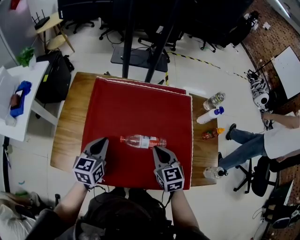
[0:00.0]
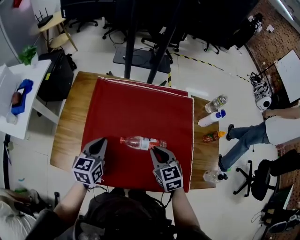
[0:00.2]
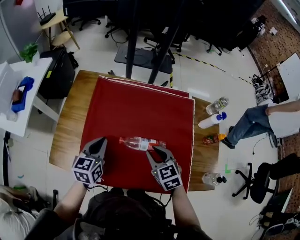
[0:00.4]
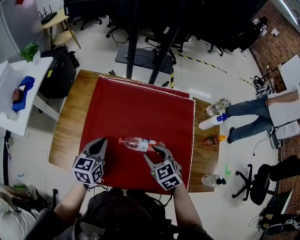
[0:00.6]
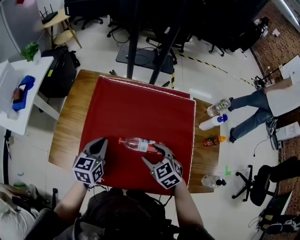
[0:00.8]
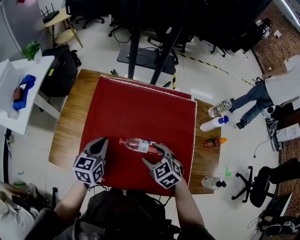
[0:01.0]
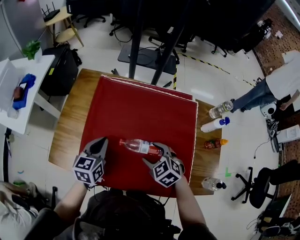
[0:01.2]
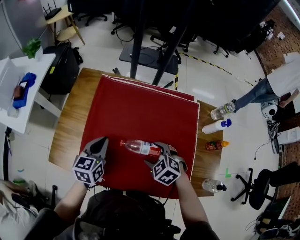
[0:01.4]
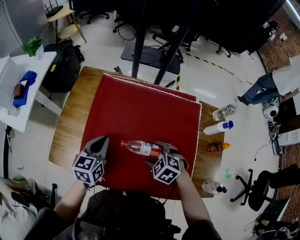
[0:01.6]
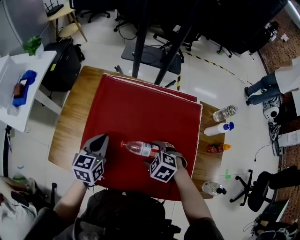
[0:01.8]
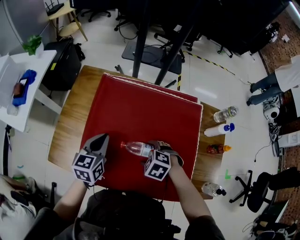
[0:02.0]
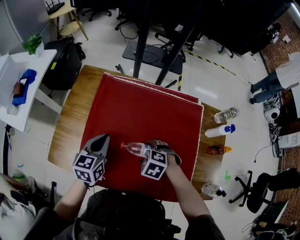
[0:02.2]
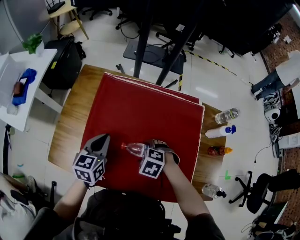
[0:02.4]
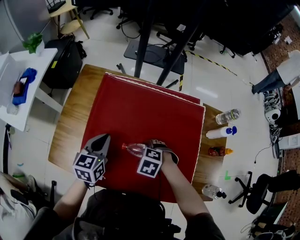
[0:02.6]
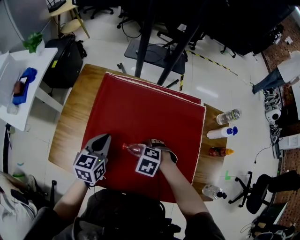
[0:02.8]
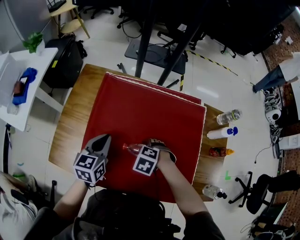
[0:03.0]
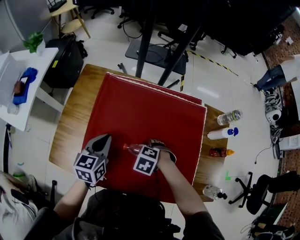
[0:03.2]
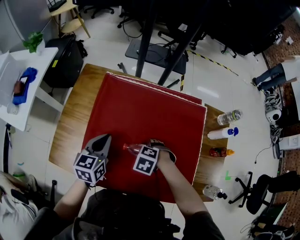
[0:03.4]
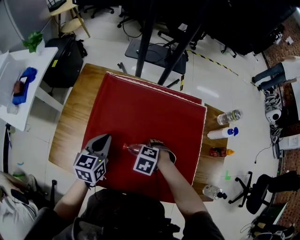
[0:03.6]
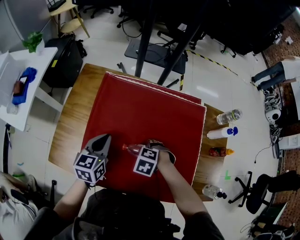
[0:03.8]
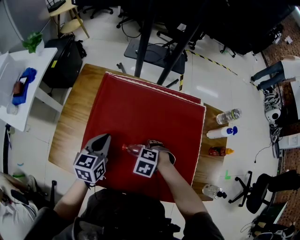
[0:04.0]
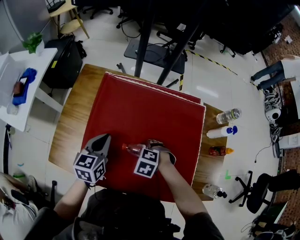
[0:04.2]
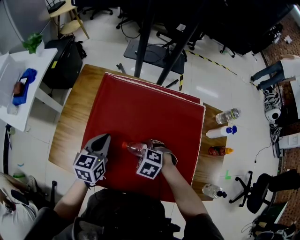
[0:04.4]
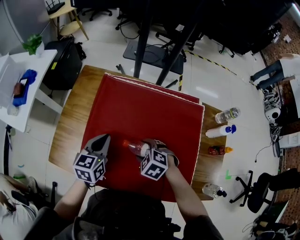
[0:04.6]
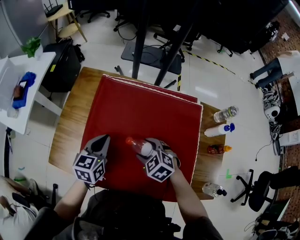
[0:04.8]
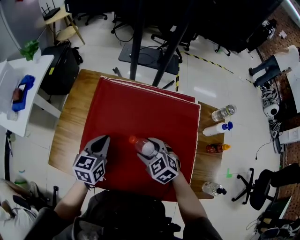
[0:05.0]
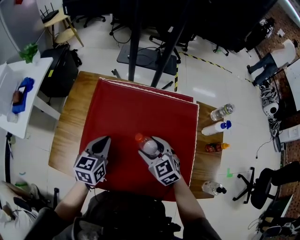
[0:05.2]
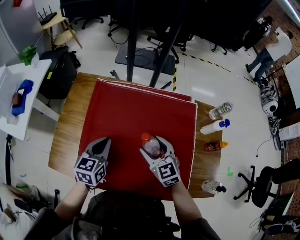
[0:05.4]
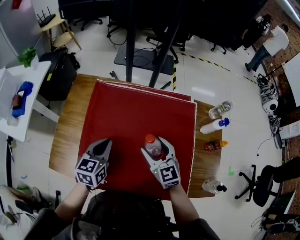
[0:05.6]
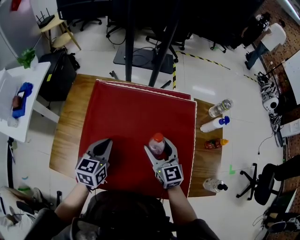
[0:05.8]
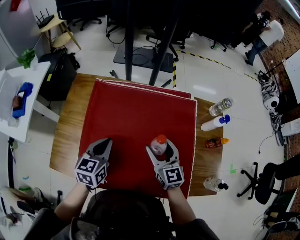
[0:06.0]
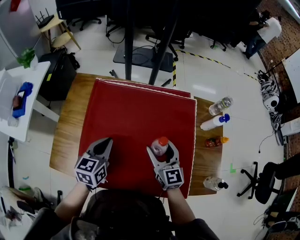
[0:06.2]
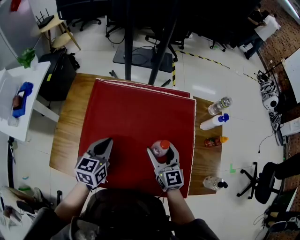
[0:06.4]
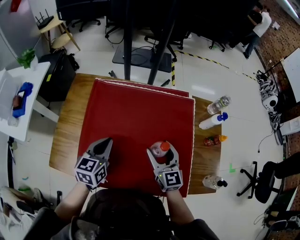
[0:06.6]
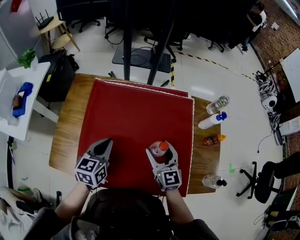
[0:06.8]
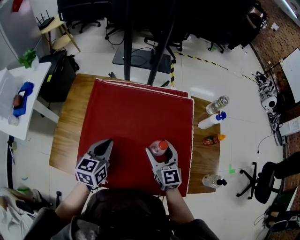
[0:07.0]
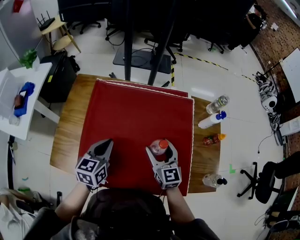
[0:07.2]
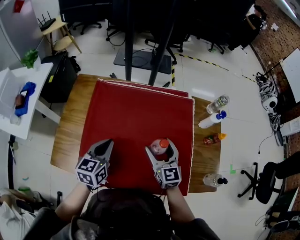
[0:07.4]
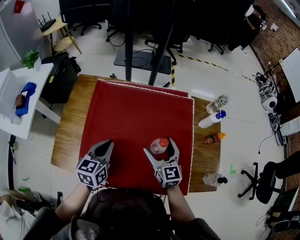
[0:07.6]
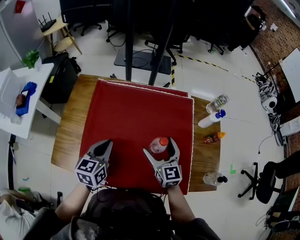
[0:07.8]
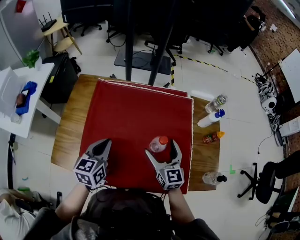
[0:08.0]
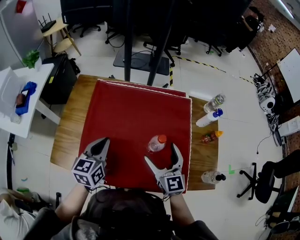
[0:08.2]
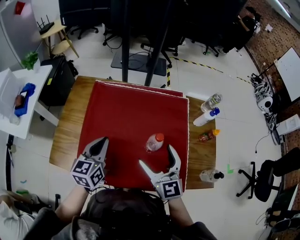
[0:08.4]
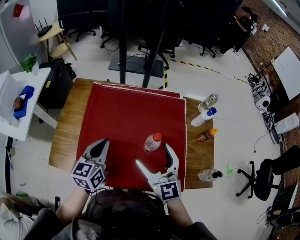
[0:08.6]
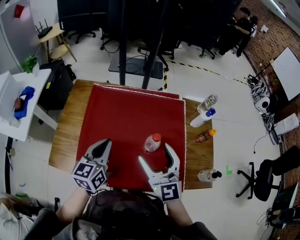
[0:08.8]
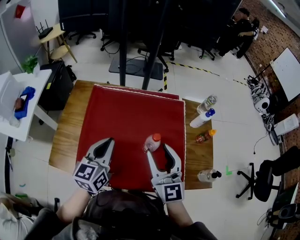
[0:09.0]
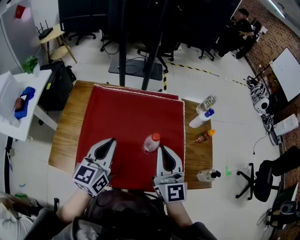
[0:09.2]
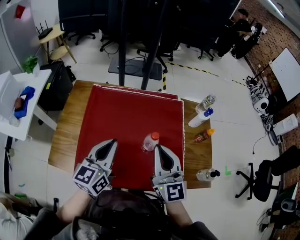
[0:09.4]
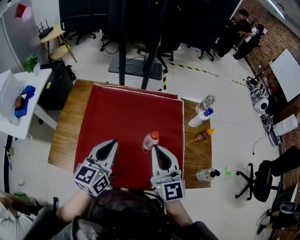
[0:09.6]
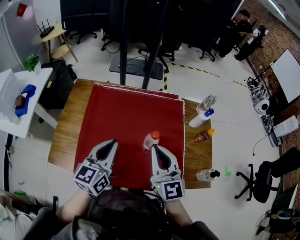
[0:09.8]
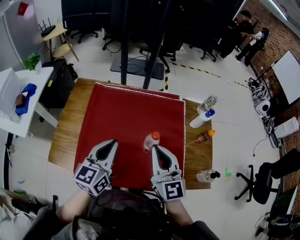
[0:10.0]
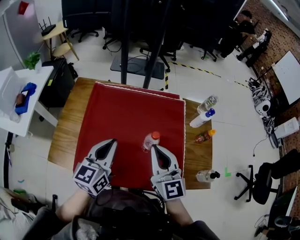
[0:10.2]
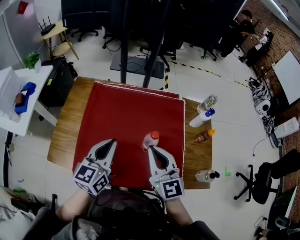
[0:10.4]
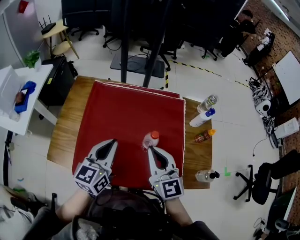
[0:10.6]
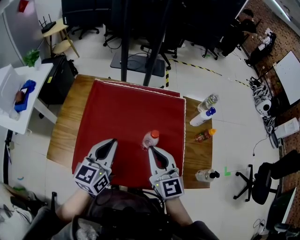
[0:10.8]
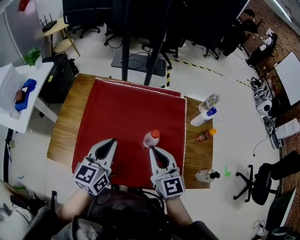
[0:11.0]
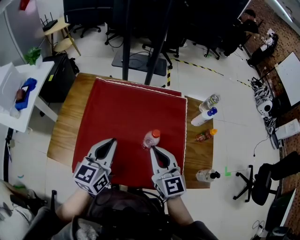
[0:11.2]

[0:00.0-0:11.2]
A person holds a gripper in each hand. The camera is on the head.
0:00.0 to 0:01.6: The right gripper travels downward by approximately 10 cm, angles its fingers downward, by some 30 degrees, and opens up.
0:01.6 to 0:03.2: The right gripper is displaced downward by roughly 5 cm, and changes its angle by some 20 degrees.
0:03.2 to 0:04.8: The right gripper goes some 5 cm upward, and turns by about 30 degrees.
0:04.8 to 0:06.4: The right gripper is displaced to the right and upward by some 15 cm, and points its fingers some 40 degrees further upward. The left gripper shifts by approximately 5 cm.
0:06.4 to 0:08.0: The left gripper is displaced backward by roughly 5 cm; the right gripper opens up.
0:08.0 to 0:09.6: The right gripper shifts some 15 cm upward and backward, and closes. The left gripper moves upward, to the right and backward, approximately 15 cm.
0:09.6 to 0:11.2: The right gripper is displaced downward by approximately 5 cm.

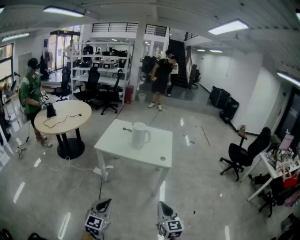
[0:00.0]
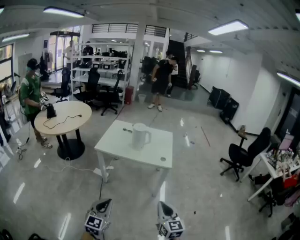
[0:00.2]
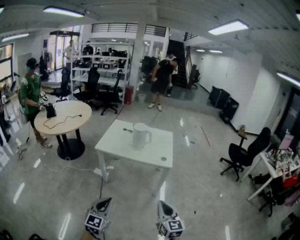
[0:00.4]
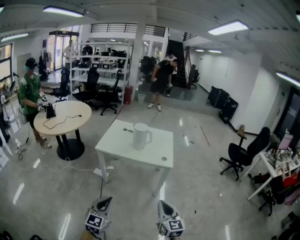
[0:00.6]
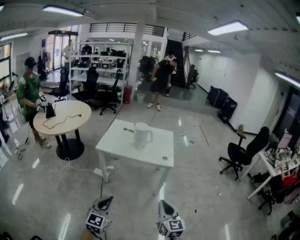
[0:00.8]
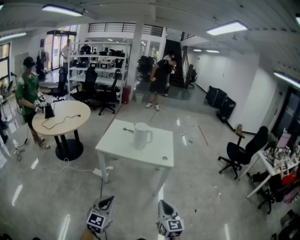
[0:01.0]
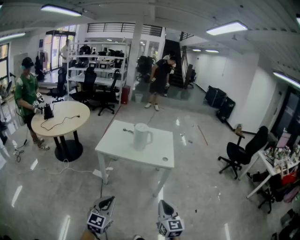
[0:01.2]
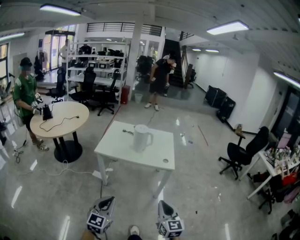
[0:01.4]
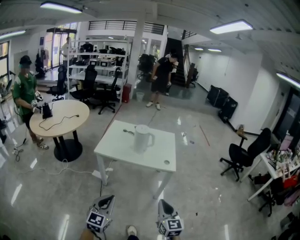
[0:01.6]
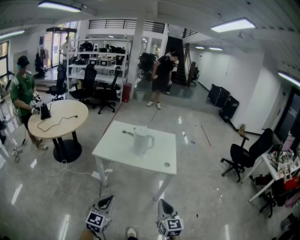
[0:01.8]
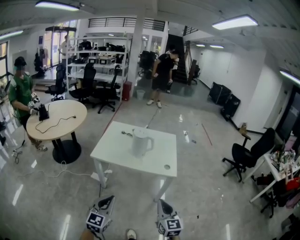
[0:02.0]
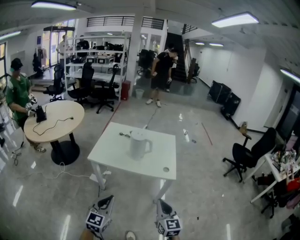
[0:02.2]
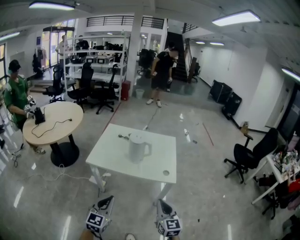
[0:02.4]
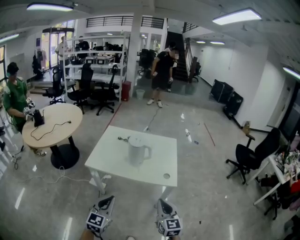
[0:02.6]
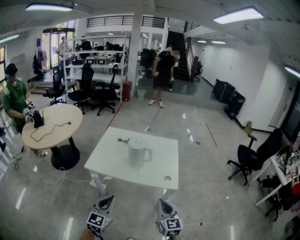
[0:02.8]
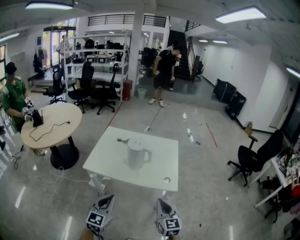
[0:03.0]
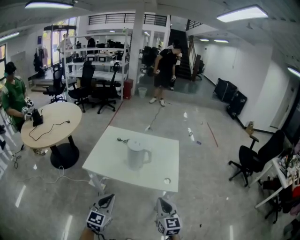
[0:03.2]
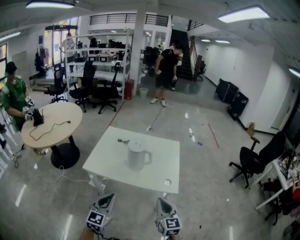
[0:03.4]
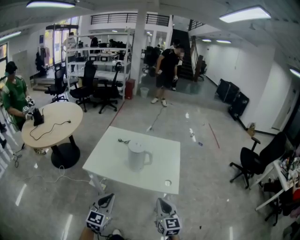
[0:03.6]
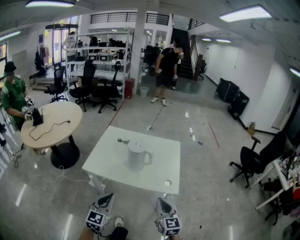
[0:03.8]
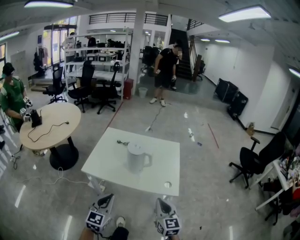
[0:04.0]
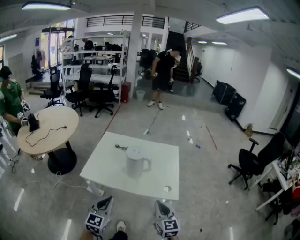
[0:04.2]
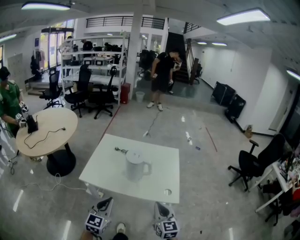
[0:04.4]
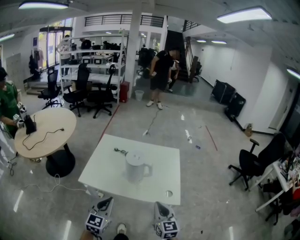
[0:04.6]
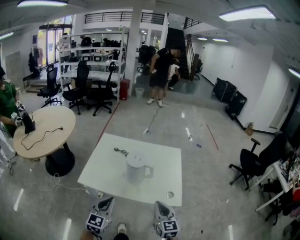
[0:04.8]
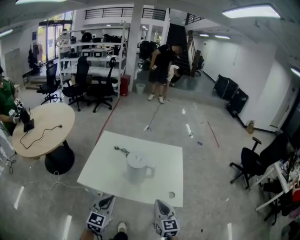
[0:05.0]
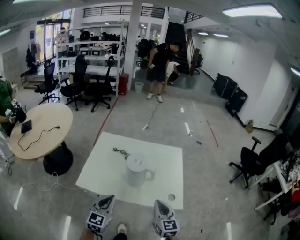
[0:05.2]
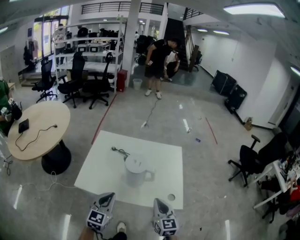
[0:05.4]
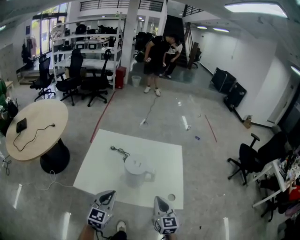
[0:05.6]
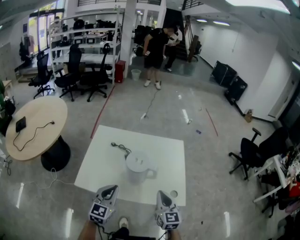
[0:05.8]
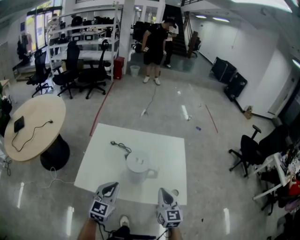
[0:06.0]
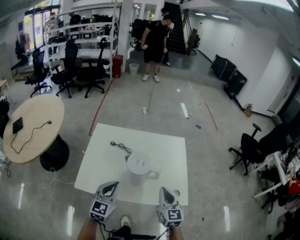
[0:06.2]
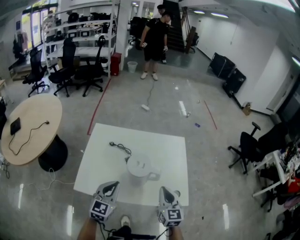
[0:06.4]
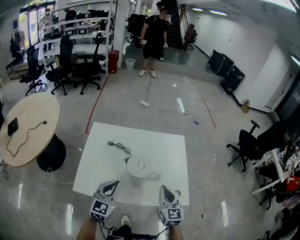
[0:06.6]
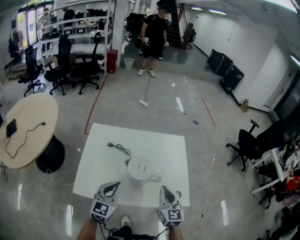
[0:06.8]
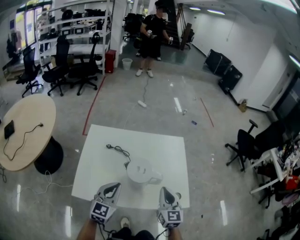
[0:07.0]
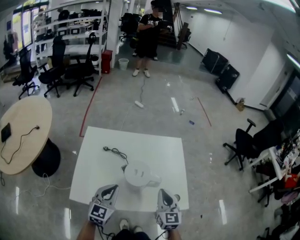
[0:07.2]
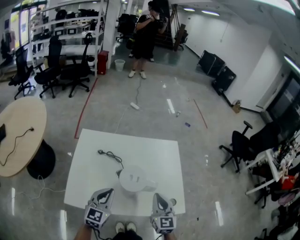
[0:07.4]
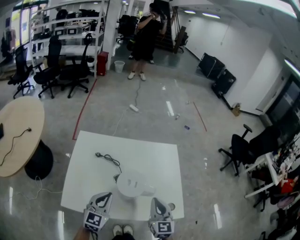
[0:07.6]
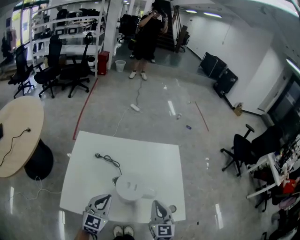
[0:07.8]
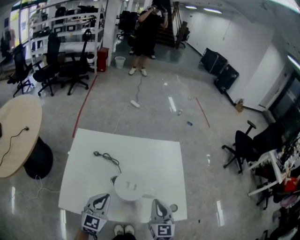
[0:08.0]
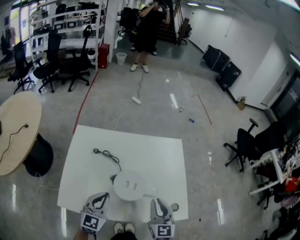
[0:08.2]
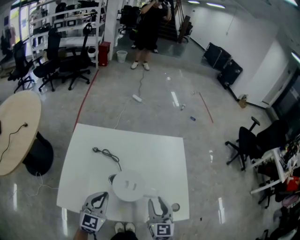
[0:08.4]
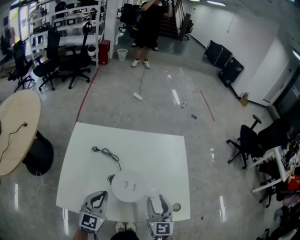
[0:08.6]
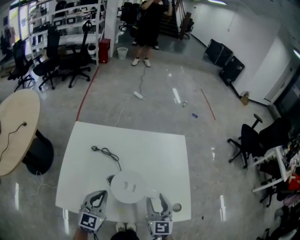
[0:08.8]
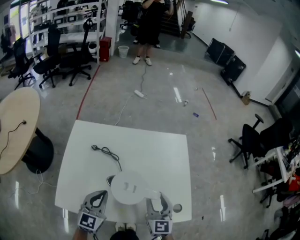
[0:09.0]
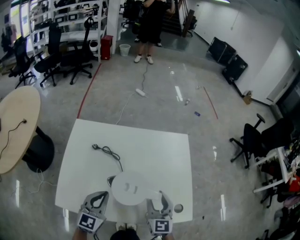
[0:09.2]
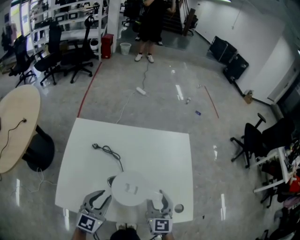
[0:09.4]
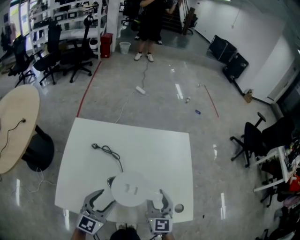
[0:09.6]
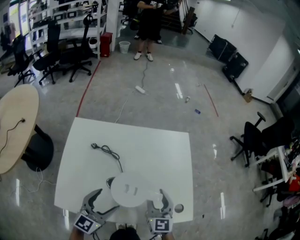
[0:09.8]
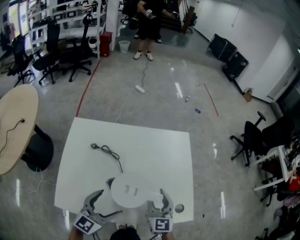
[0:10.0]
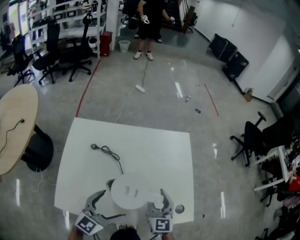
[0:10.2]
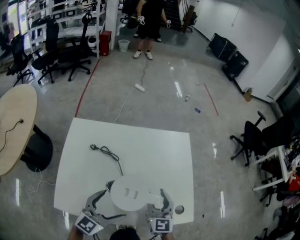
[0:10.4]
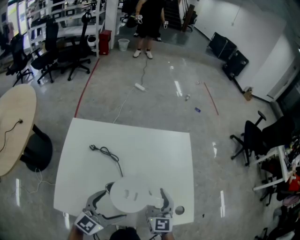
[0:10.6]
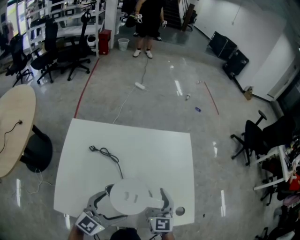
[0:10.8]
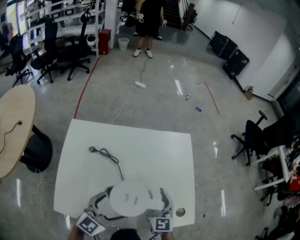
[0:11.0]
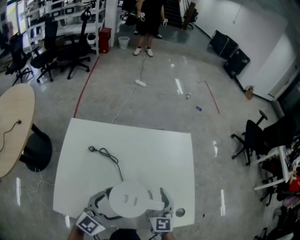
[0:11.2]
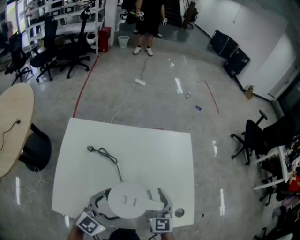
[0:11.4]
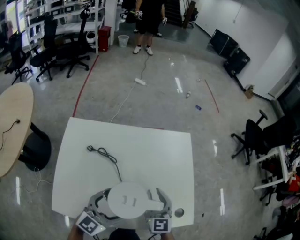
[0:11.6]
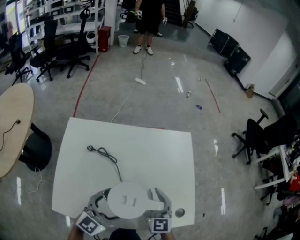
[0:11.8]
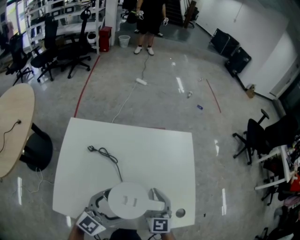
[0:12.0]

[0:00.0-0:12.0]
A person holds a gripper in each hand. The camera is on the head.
0:00.0 to 0:01.6: The two grippers go some 5 cm forward.
0:01.6 to 0:03.0: Both grippers travel together forward, about 20 cm.
0:03.0 to 0:04.4: The two grippers go roughly 10 cm forward.
0:04.4 to 0:06.0: Both grippers travel together forward, roughly 15 cm.
0:06.0 to 0:07.6: The right gripper travels forward by some 5 cm. The left gripper is displaced forward and downward by about 10 cm.
0:07.6 to 0:09.0: The right gripper shifts approximately 5 cm downward, and opens its fingers.
0:09.0 to 0:10.4: The left gripper heads to the right, covering approximately 5 cm, swivels approximately 20 degrees, and opens.
0:10.4 to 0:12.0: The right gripper closes.

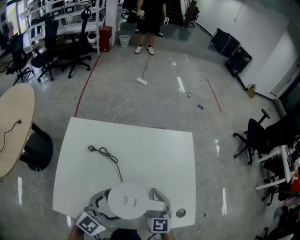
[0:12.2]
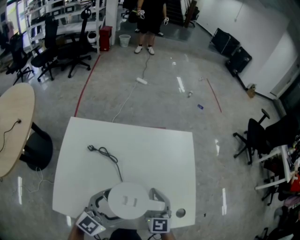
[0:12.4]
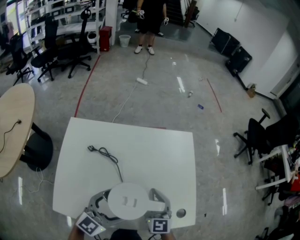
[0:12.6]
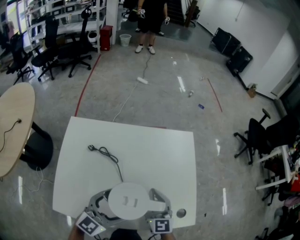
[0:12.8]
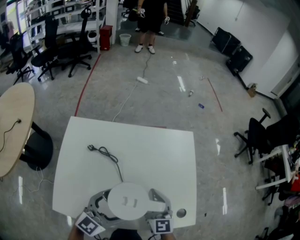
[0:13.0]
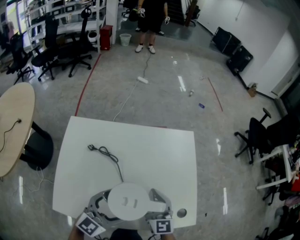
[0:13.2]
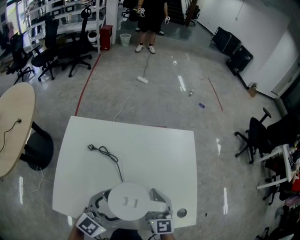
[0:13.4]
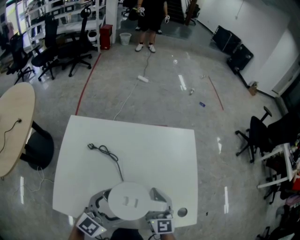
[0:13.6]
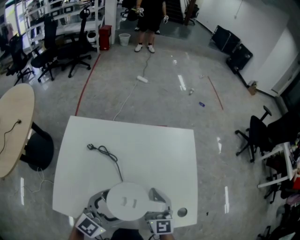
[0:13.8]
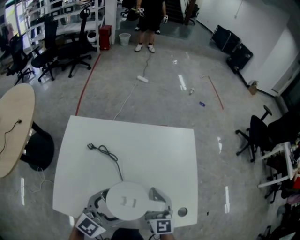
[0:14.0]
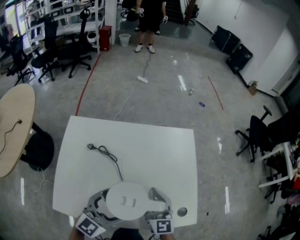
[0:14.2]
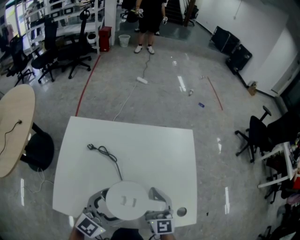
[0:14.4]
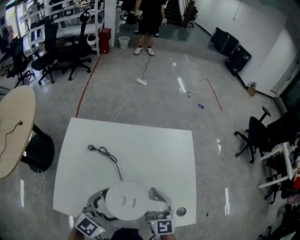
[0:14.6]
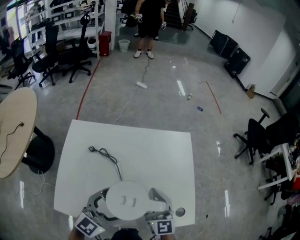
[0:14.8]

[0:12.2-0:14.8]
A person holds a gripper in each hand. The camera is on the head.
0:12.2 to 0:14.8: The grippers stay close to where they were, moving slightly.
